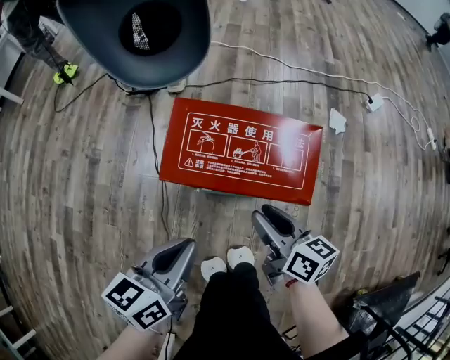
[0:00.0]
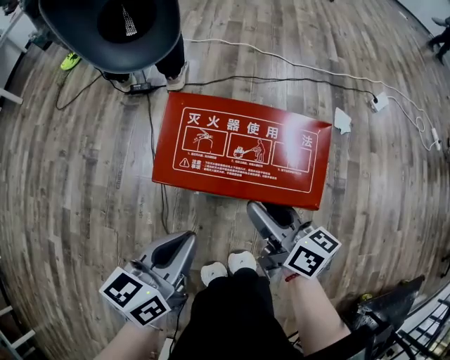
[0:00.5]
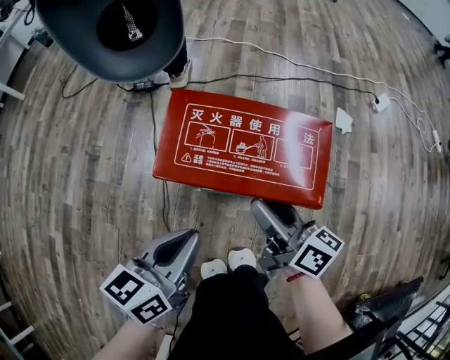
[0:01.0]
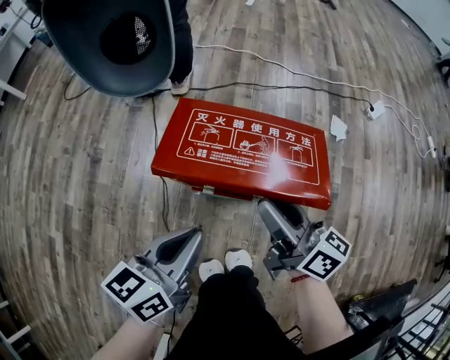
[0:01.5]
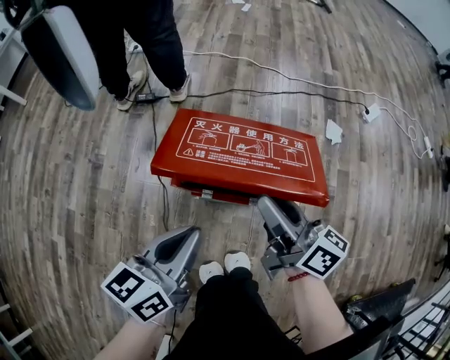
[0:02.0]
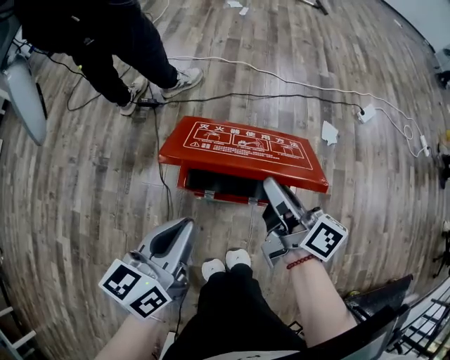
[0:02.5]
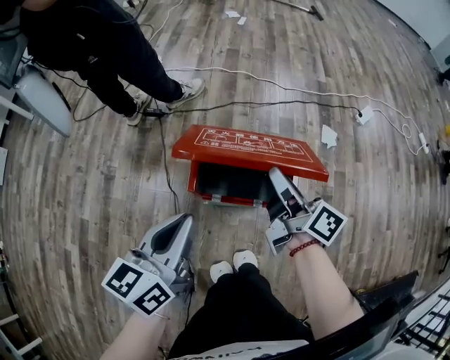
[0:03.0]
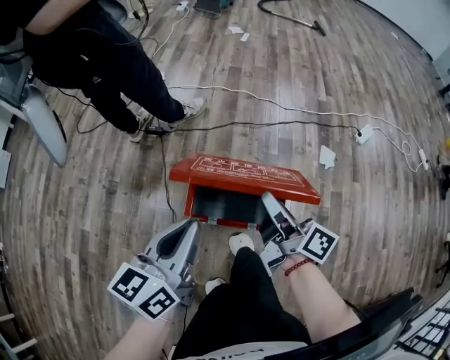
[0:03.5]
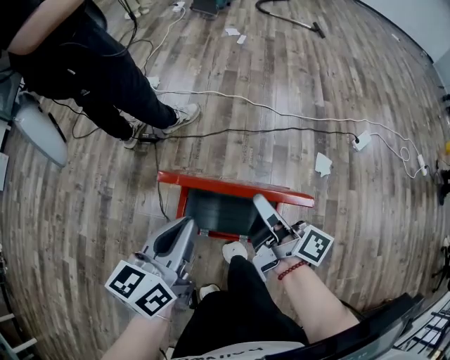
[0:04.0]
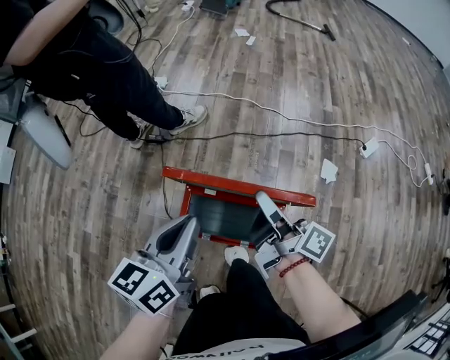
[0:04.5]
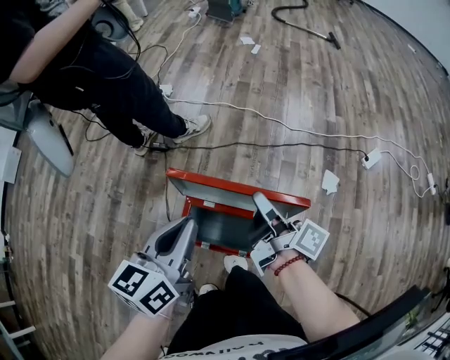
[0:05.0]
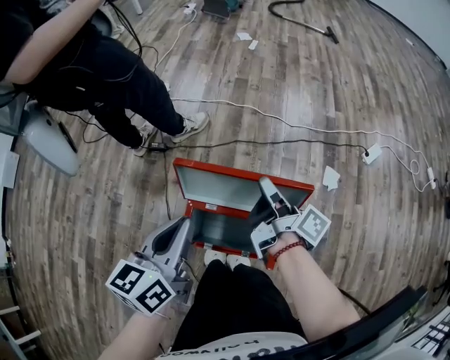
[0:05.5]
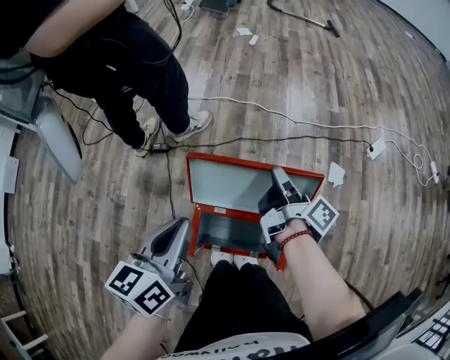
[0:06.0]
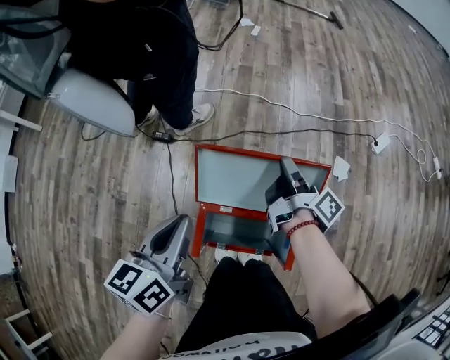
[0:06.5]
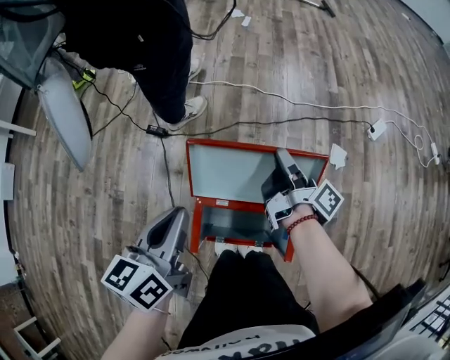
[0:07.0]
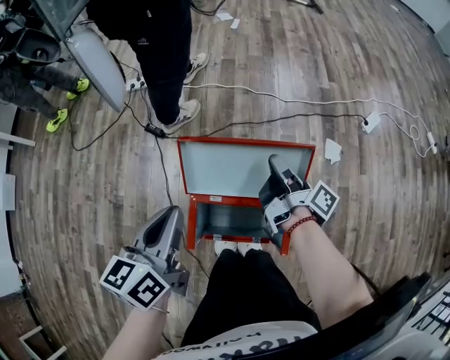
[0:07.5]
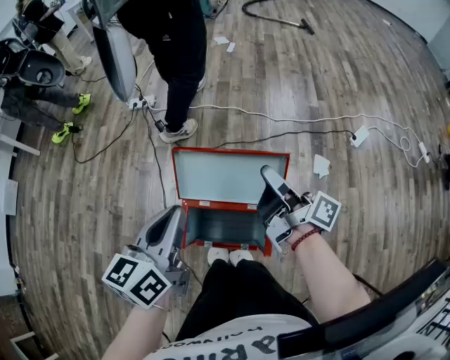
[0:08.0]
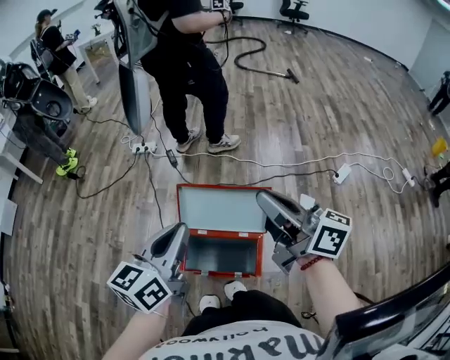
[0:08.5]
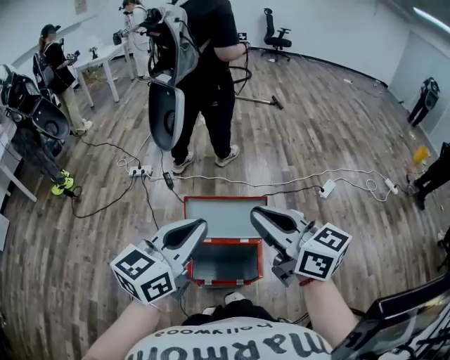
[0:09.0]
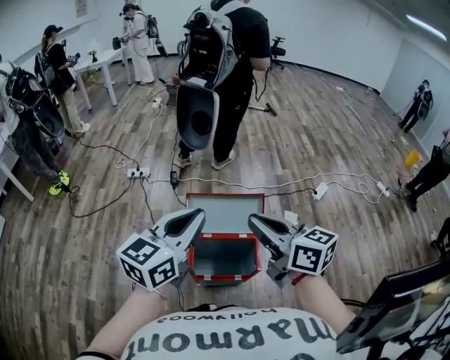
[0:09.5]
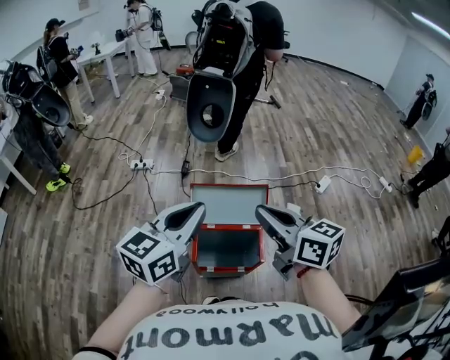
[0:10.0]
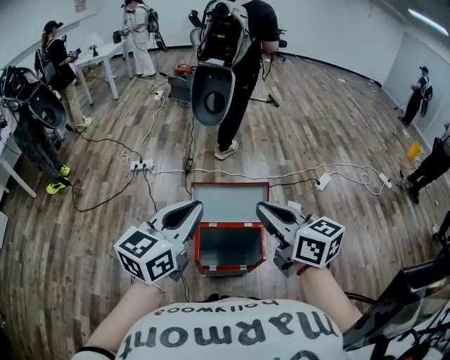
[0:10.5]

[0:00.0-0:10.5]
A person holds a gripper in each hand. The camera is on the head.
0:00.0 to 0:02.0: The right gripper shifts about 10 cm upward, and changes its angle by roughly 20 degrees.
0:02.0 to 0:04.0: Both grippers travel together forward and upward, some 20 cm. The right gripper changes its angle by some 20 degrees, and closes its fingers.
0:04.0 to 0:06.5: The right gripper heads forward, covering roughly 20 cm, and changes its angle by some 30 degrees, while the left gripper heads forward and to the left, covering roughly 10 cm.
0:06.5 to 0:08.5: The left gripper goes about 15 cm upward and to the right. Meanwhile the right gripper heads upward and backward, covering approximately 35 cm, and turns by roughly 60 degrees.
0:08.5 to 0:10.5: The left gripper is displaced upward, backward and to the left by roughly 15 cm, and swivels approximately 20 degrees; the right gripper shifts some 15 cm backward and to the left, and turns by some 30 degrees.

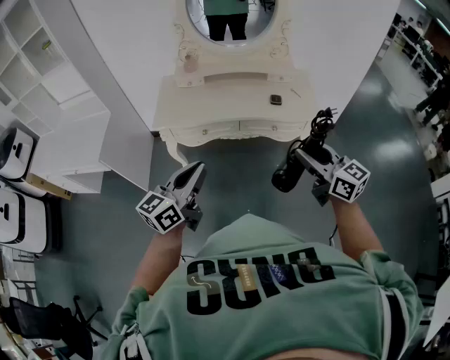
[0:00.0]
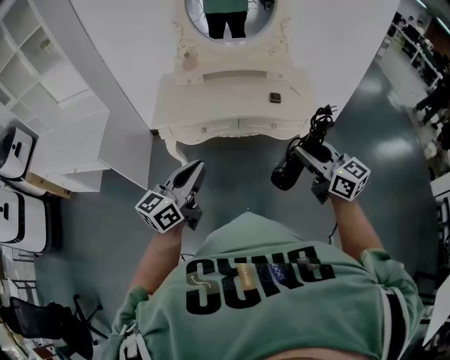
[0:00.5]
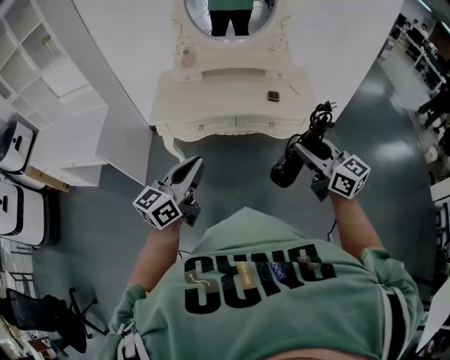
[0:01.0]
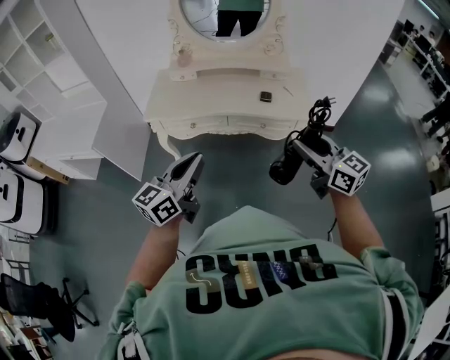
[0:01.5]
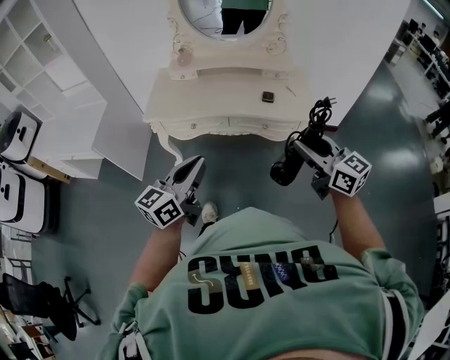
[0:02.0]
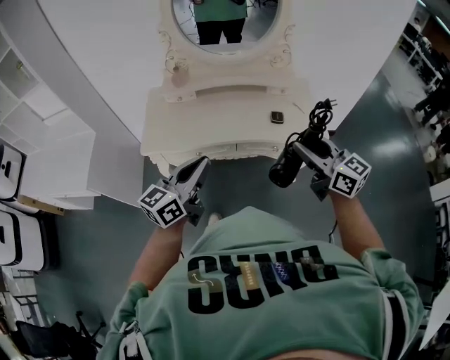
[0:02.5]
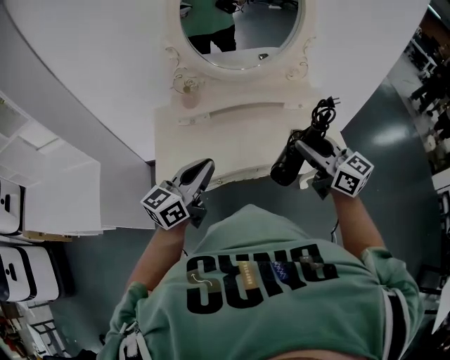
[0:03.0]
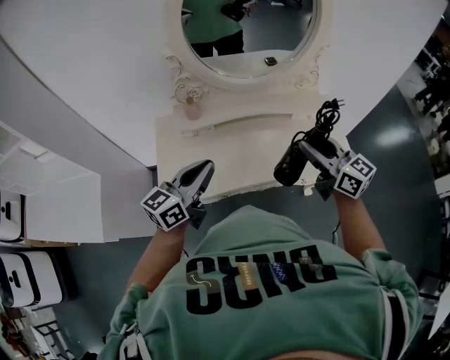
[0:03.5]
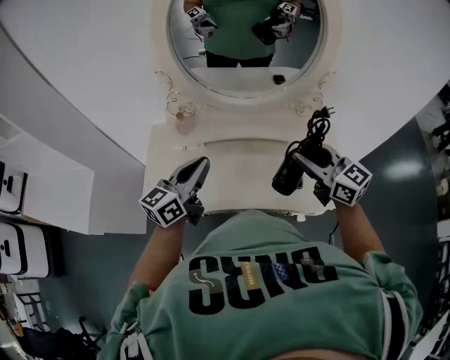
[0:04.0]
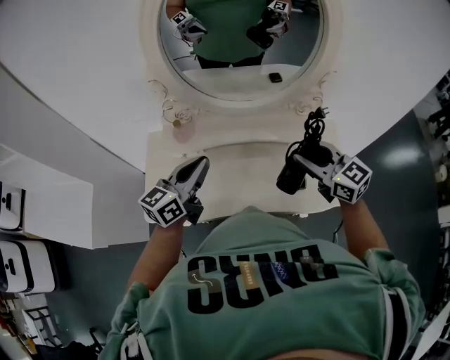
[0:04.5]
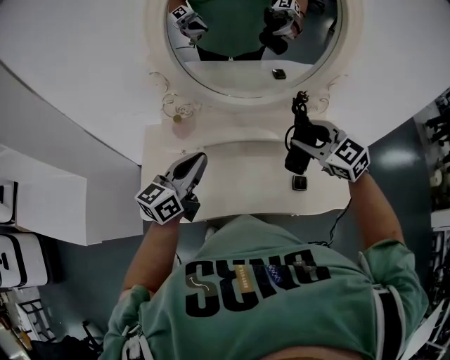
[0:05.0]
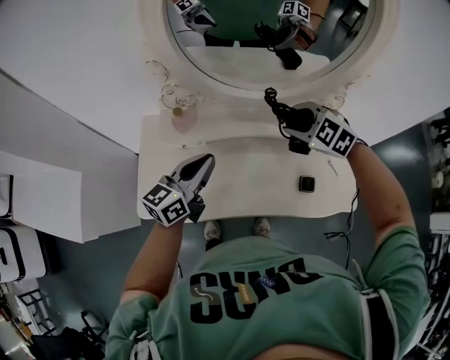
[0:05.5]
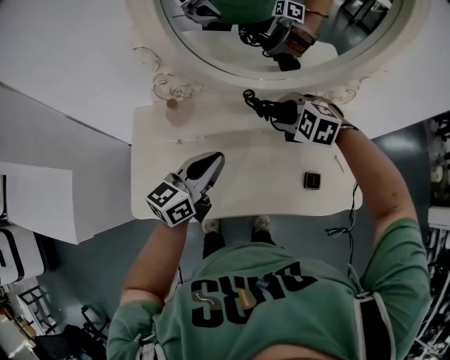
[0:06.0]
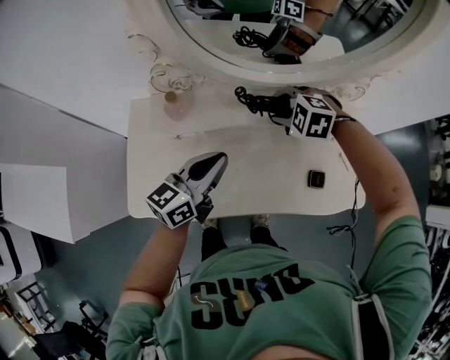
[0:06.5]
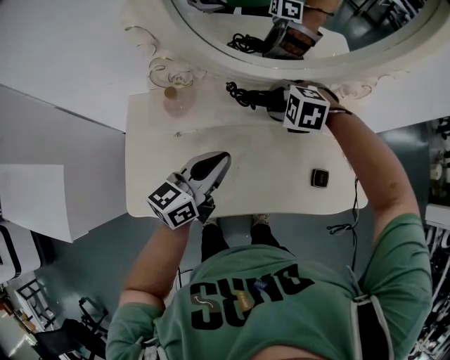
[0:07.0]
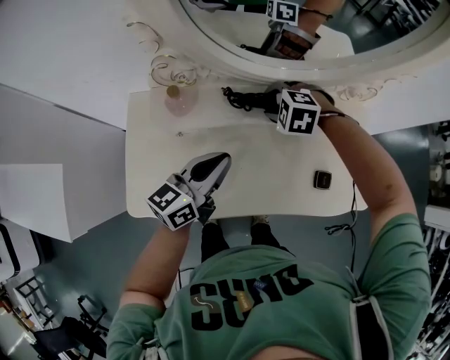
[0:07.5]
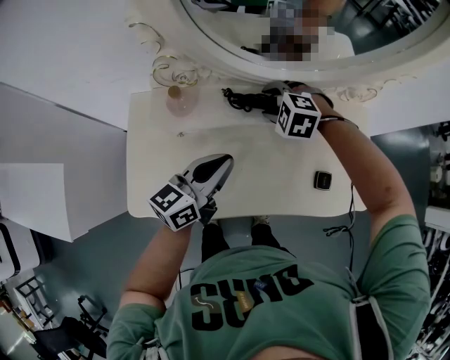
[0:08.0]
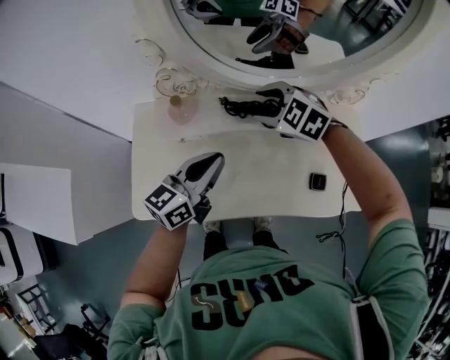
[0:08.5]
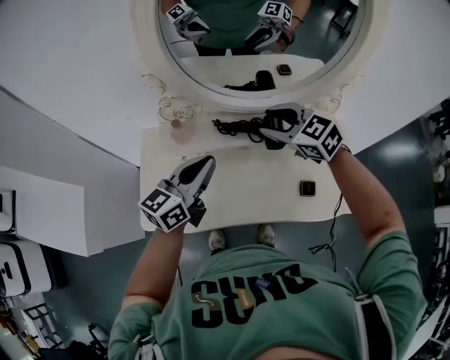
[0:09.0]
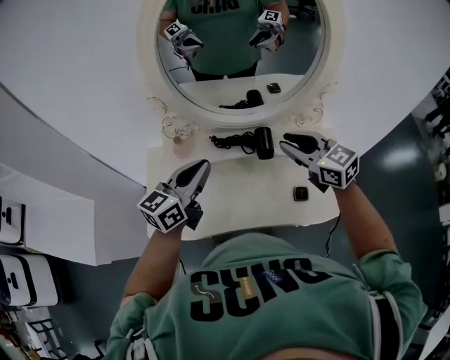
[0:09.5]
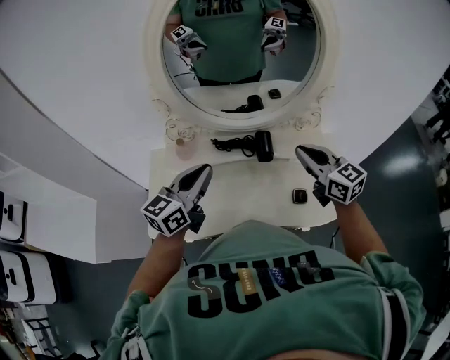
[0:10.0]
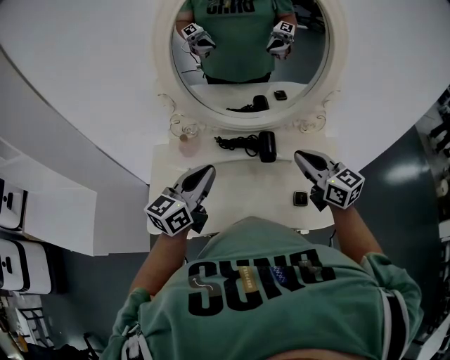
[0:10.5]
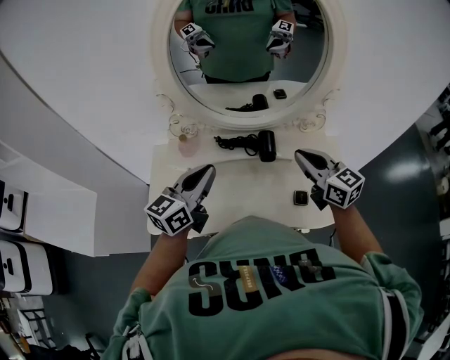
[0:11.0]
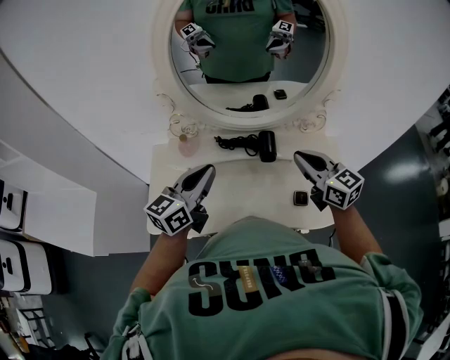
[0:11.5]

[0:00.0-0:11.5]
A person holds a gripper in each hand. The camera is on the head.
0:00.0 to 0:02.0: Both grippers move to the right, approximately 10 cm.
0:02.0 to 0:04.0: The two grippers travel together, forward, roughly 50 cm.
0:04.0 to 0:06.0: The right gripper shifts some 30 cm forward, downward and to the left, and angles its fingers downward, by approximately 50 degrees, while the left gripper shifts roughly 15 cm downward and forward.
0:06.0 to 0:07.5: The right gripper moves downward and to the left, roughly 10 cm.
0:07.5 to 0:09.5: The left gripper goes approximately 15 cm upward; the right gripper heads upward and backward, covering roughly 30 cm, and angles its fingers upward, by about 50 degrees.
0:09.5 to 0:11.5: The grippers move only a little.

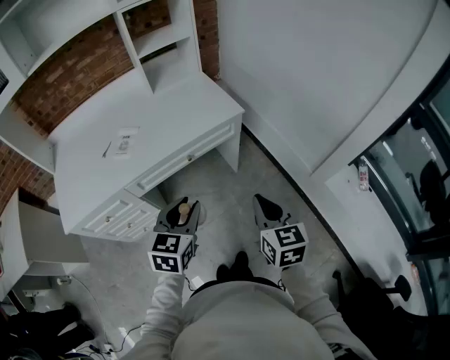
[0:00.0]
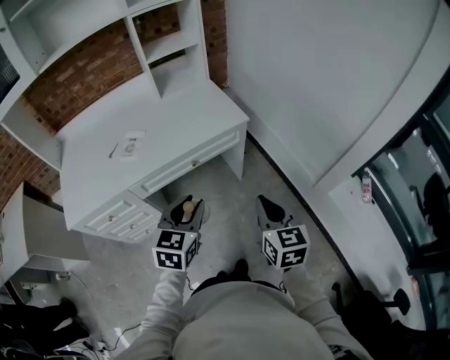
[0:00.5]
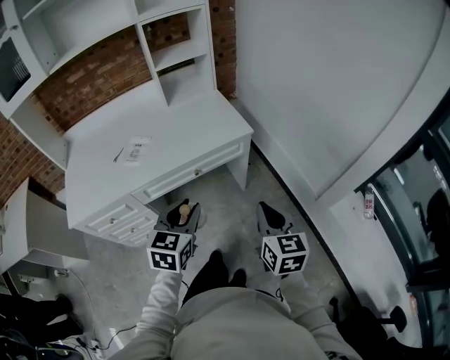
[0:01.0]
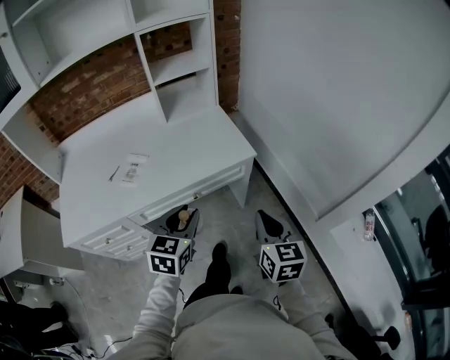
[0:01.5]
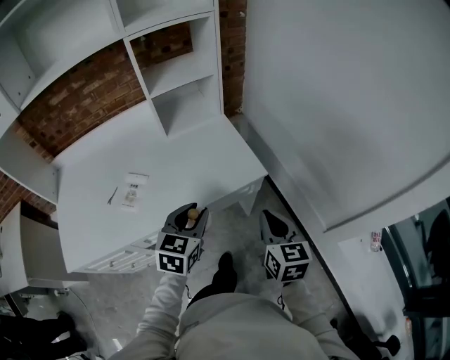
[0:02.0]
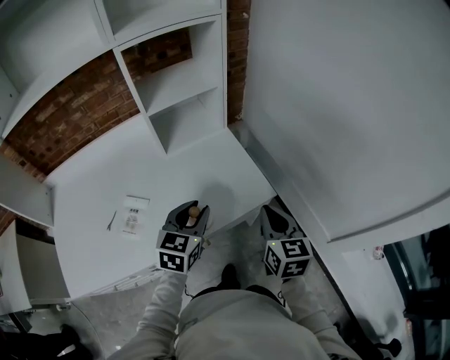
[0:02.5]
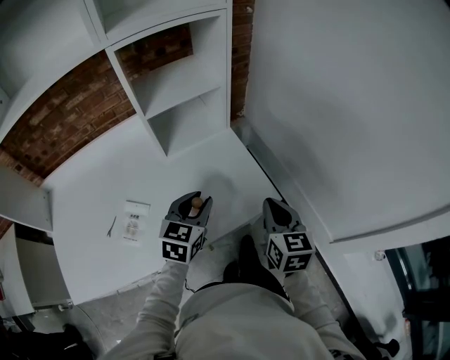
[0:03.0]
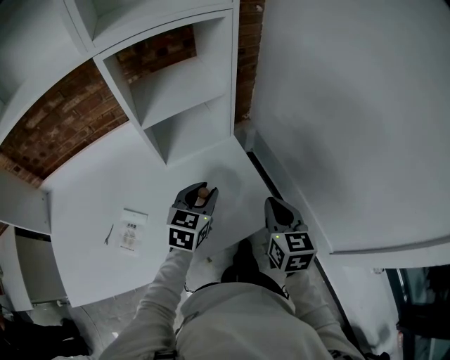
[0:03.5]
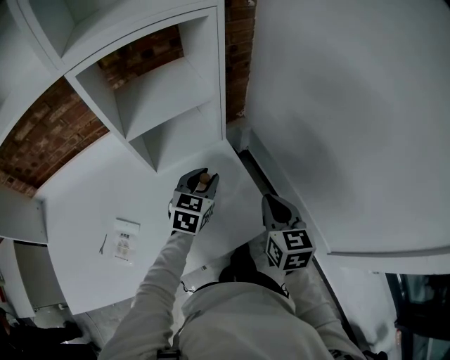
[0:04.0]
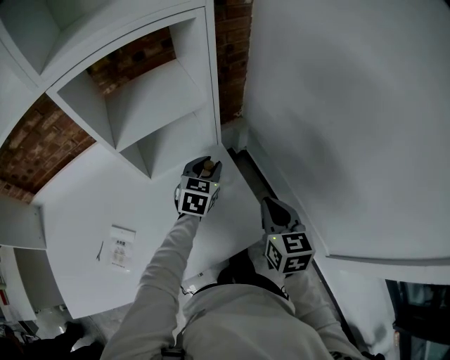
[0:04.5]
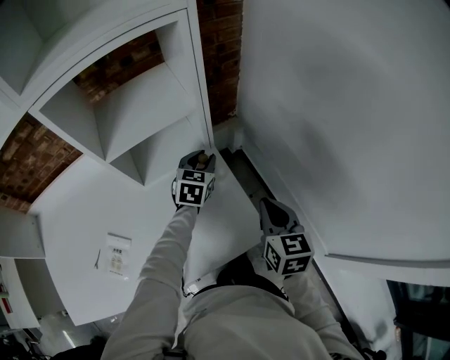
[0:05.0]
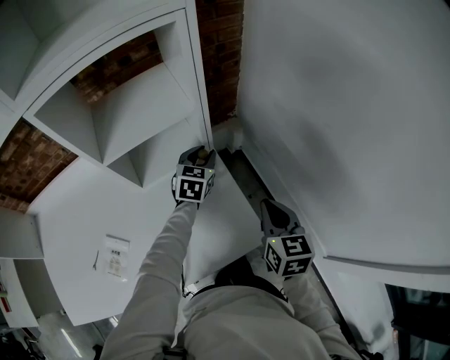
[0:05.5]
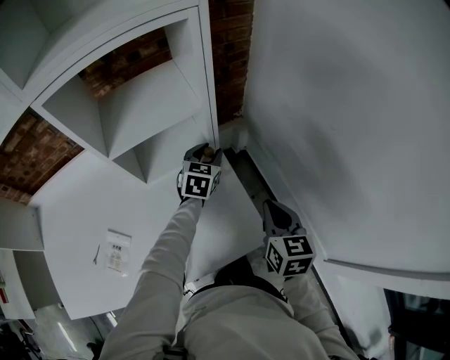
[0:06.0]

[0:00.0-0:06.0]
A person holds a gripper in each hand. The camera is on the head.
0:00.0 to 0:02.0: The two grippers go approximately 25 cm forward.
0:02.0 to 0:04.0: The two grippers go some 30 cm forward.
0:04.0 to 0:06.0: The left gripper heads forward, covering approximately 15 cm, while the right gripper shifts by some 5 cm.
